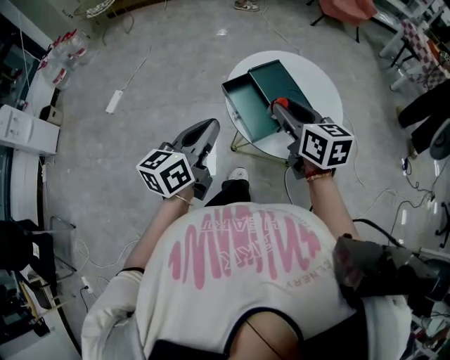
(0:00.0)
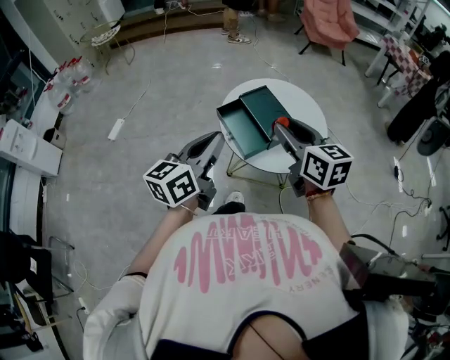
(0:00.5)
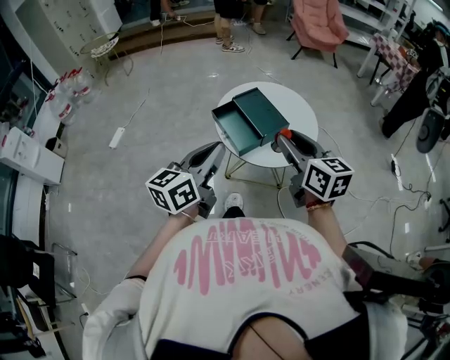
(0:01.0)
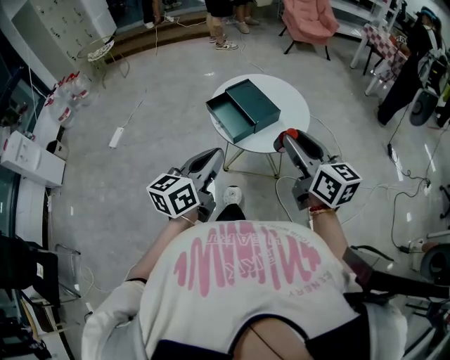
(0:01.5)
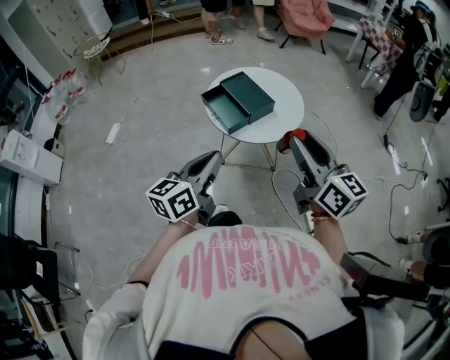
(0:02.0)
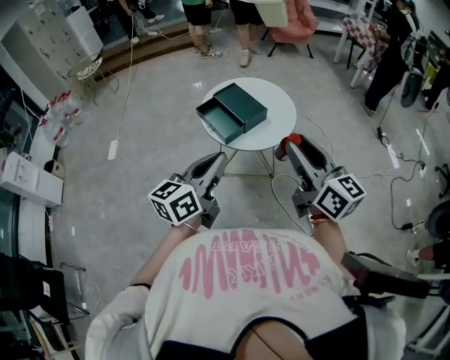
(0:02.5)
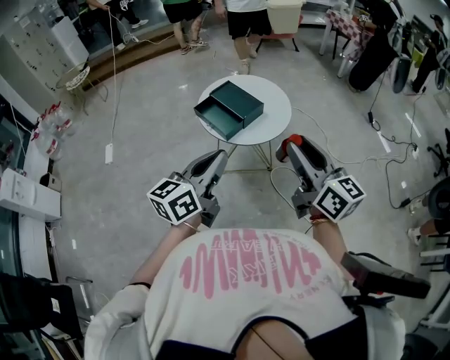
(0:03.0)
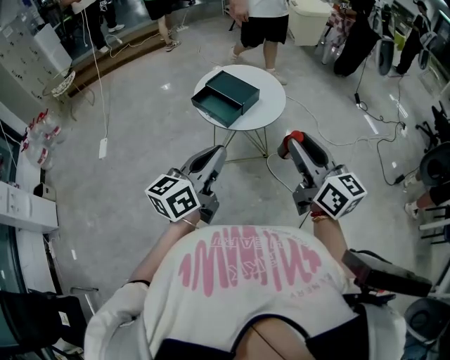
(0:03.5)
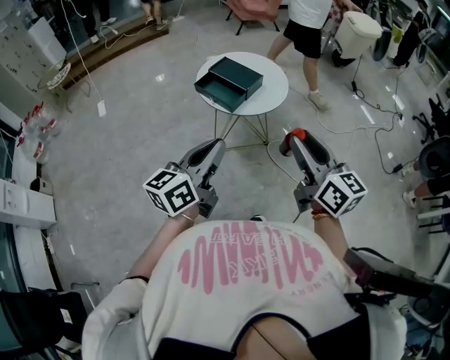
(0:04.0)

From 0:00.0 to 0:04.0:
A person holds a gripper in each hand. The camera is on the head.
From 0:00.0 to 0:02.0: The left gripper shifts approximately 20 cm backward and to the right. Meanwhile the right gripper goes roughly 35 cm backward, upward and to the right, and swivels roughly 30 degrees.
From 0:02.0 to 0:04.0: The left gripper heads backward, to the left and upward, covering roughly 15 cm; the right gripper travels backward and to the left by roughly 20 cm.

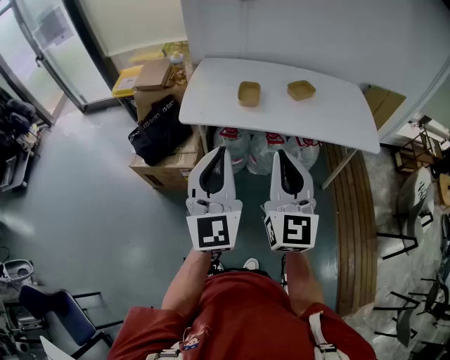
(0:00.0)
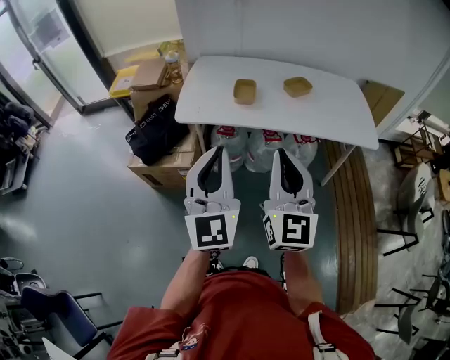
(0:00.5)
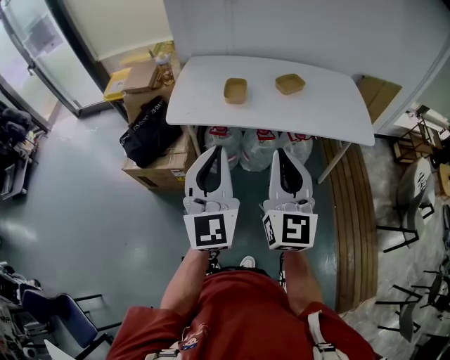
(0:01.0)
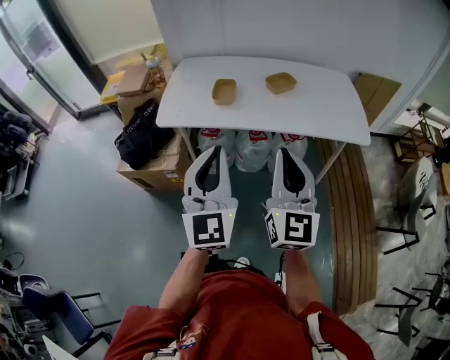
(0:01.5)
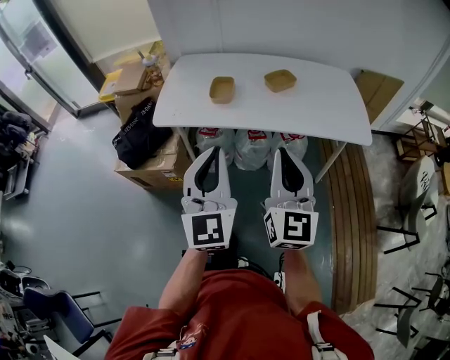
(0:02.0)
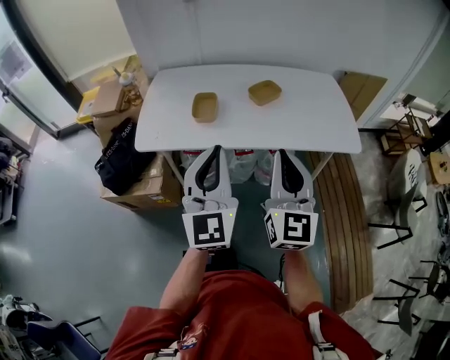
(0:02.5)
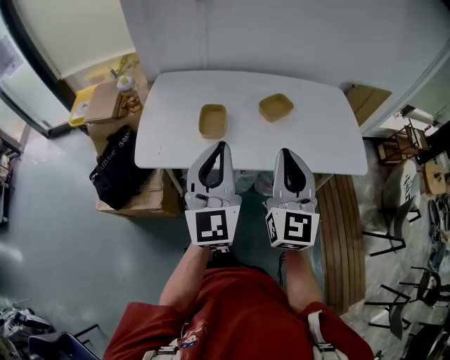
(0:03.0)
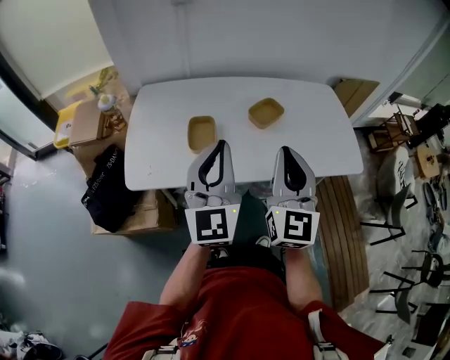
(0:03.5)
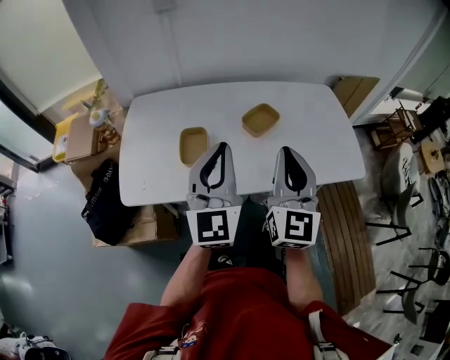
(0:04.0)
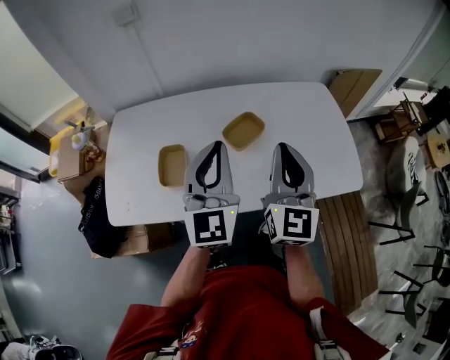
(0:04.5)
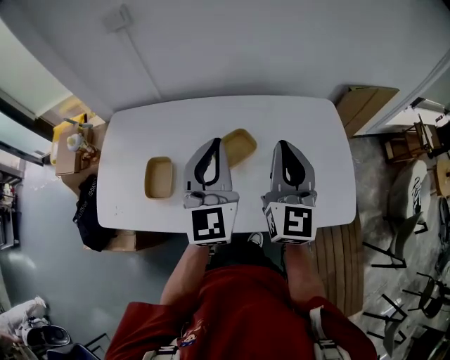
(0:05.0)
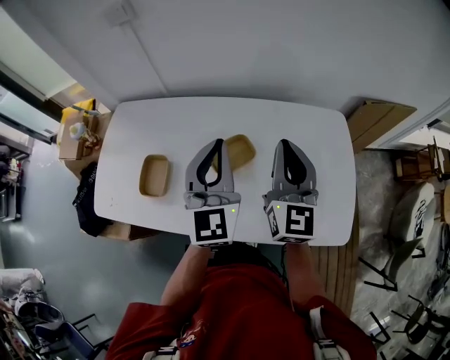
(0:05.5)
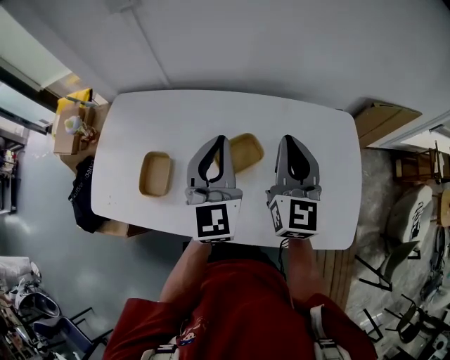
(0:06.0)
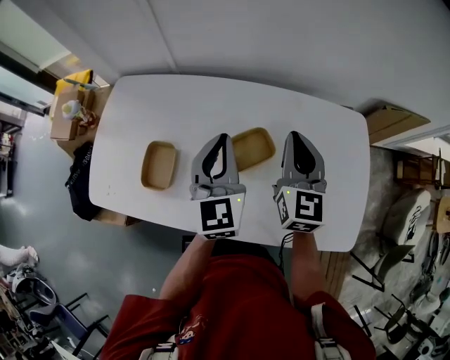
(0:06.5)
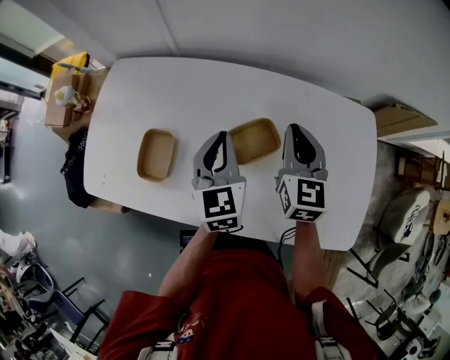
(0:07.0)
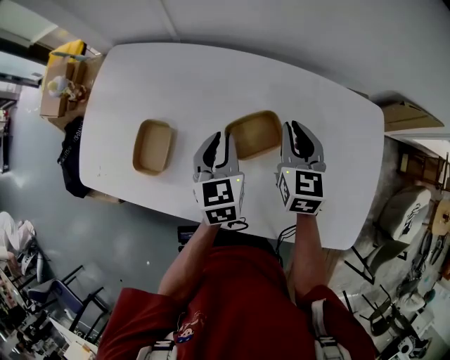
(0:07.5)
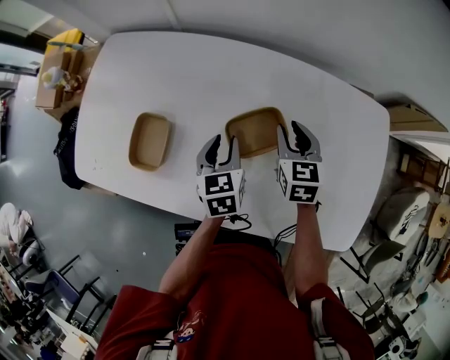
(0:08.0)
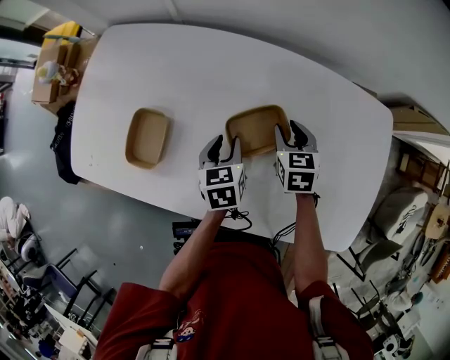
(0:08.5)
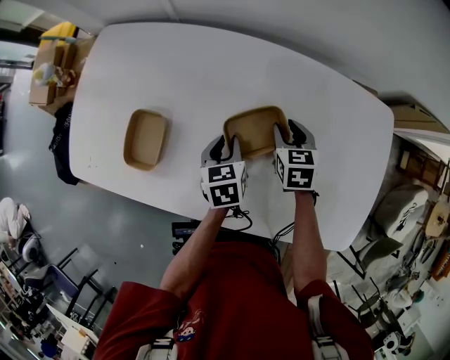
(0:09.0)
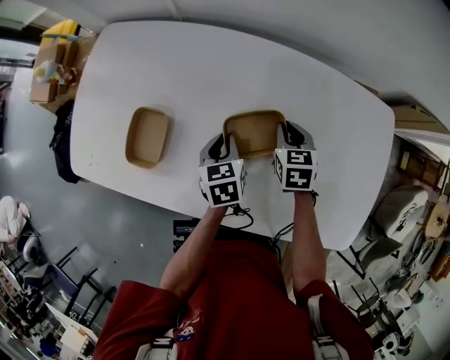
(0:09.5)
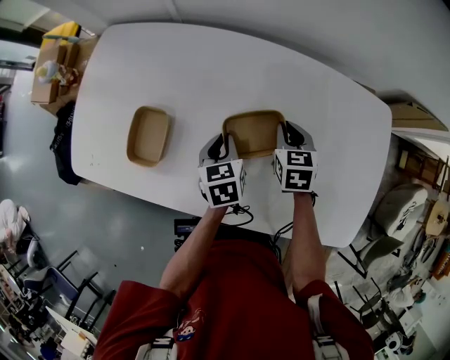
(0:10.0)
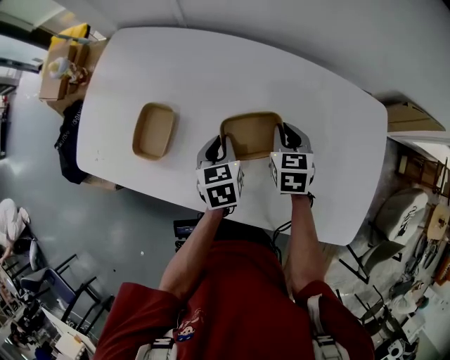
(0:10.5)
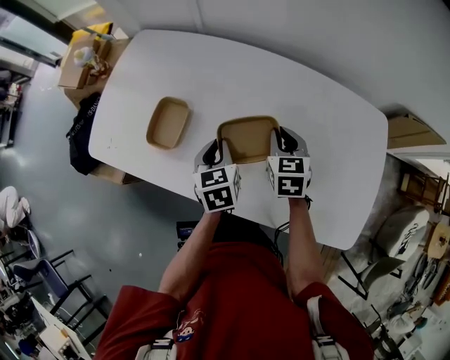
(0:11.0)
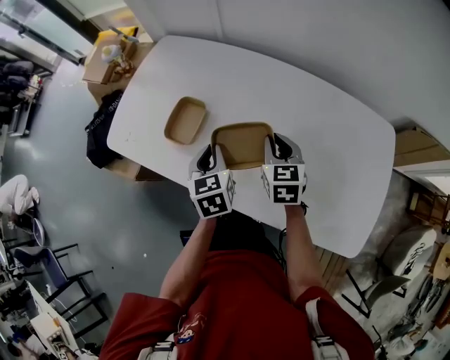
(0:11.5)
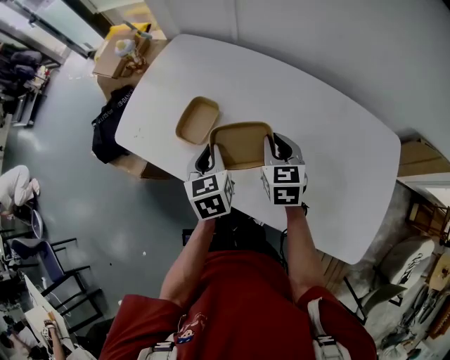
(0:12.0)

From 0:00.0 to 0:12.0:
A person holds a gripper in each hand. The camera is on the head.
From 0:00.0 to 0:02.0: The grippers both shift to the right by roughly 15 cm.
From 0:02.0 to 0:04.0: Both grippers travel together forward, some 30 cm.
From 0:04.0 to 0:06.0: Both grippers move forward and to the right, approximately 30 cm.
From 0:06.0 to 0:08.0: The grippers both shift downward by approximately 25 cm. The right gripper angles its fingers downward, by approximately 40 degrees, and opens its fingers. Meanwhile the left gripper angles its fingers downward, by roughly 40 degrees, and opens.
From 0:08.0 to 0:10.0: The left gripper closes up. The right gripper heads downward, covering approximately 5 cm, and closes up.
From 0:10.0 to 0:12.0: The two grippers go about 20 cm to the left, upward and backward. The left gripper changes its angle by some 20 degrees, while the right gripper rotates roughly 20 degrees.

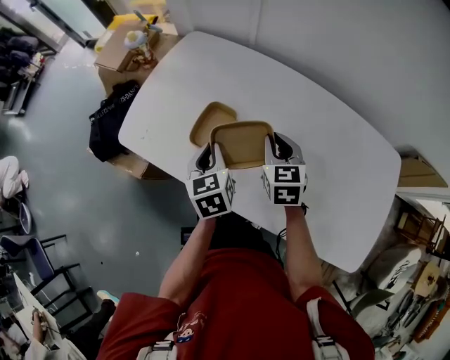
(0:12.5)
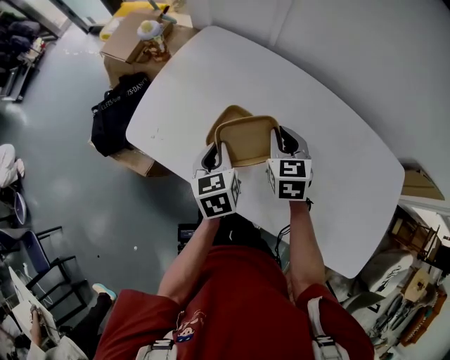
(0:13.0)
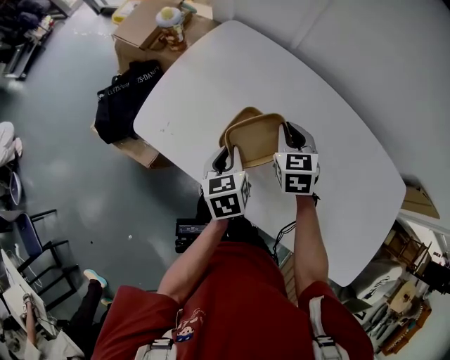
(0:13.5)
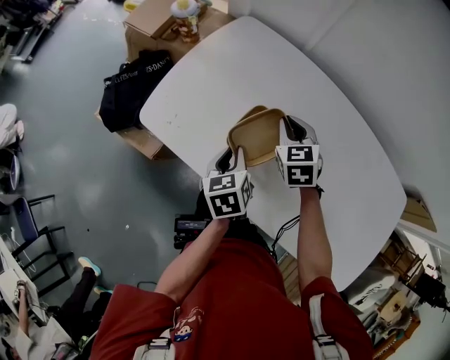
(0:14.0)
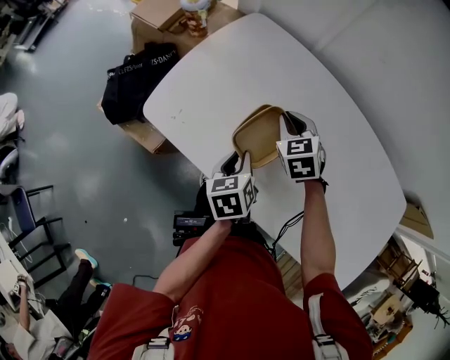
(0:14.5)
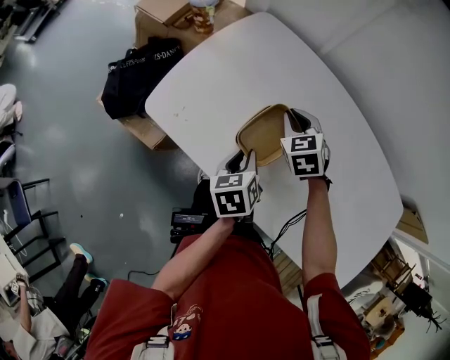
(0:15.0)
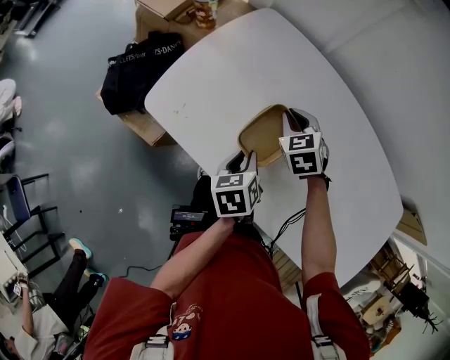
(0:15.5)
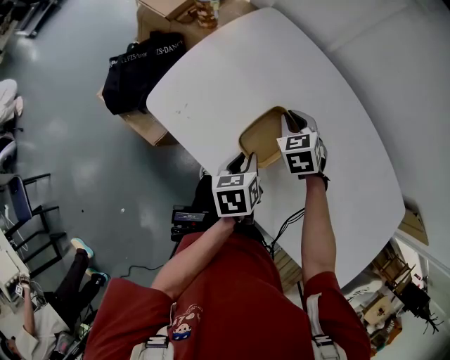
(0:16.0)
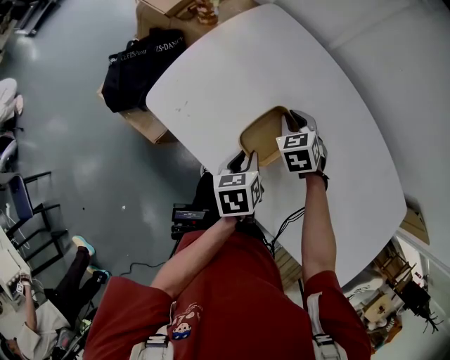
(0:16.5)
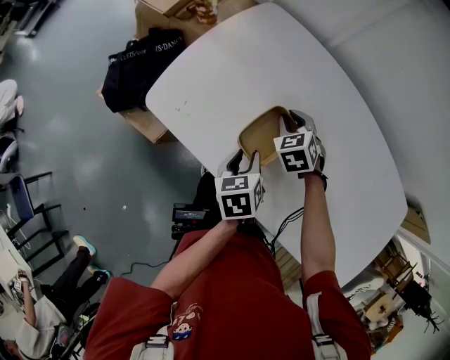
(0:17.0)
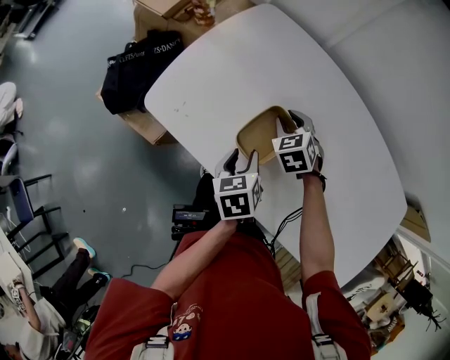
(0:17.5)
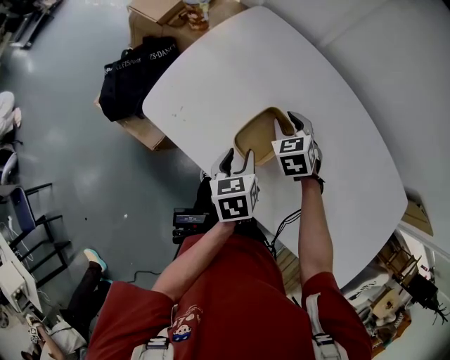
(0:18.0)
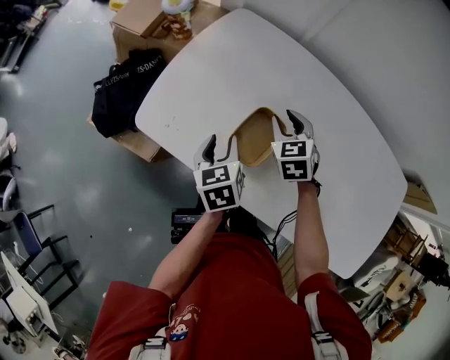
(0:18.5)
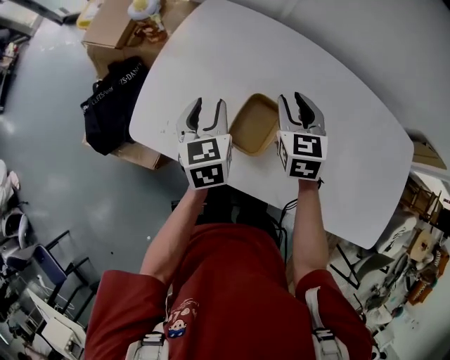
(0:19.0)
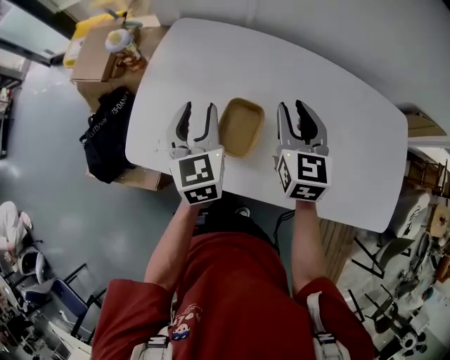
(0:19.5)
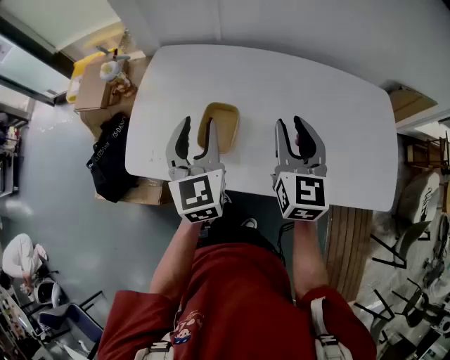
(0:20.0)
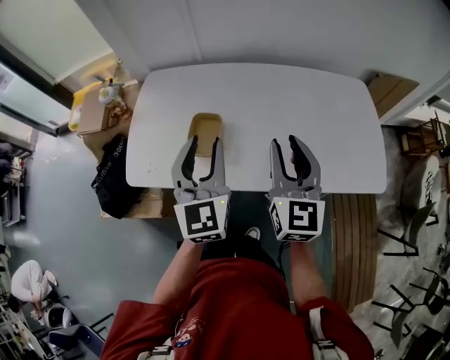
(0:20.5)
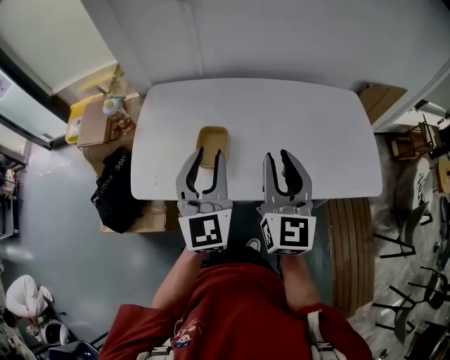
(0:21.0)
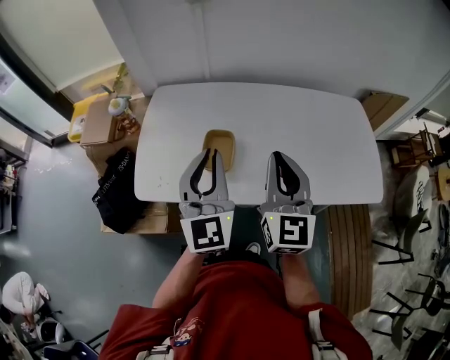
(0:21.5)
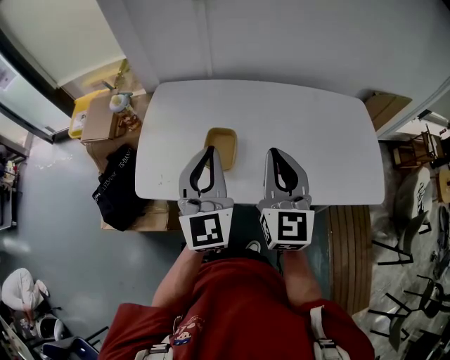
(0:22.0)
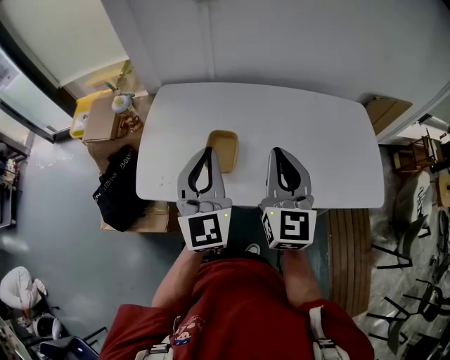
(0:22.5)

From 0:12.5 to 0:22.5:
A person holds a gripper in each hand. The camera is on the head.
From 0:12.5 to 0:14.5: The left gripper travels downward and to the left by some 10 cm, and changes its angle by approximately 20 degrees, while the right gripper moves forward and to the left, some 15 cm, and turns by roughly 30 degrees.
From 0:14.5 to 0:16.5: The right gripper is displaced downward by some 5 cm.
From 0:16.5 to 0:18.5: The left gripper is displaced to the left by roughly 5 cm.
From 0:18.5 to 0:20.5: The right gripper changes place by some 40 cm, and points its fingers roughly 40 degrees further upward; the left gripper heads upward, covering approximately 25 cm, and points its fingers approximately 40 degrees further upward.
From 0:20.5 to 0:22.5: The grippers both shift to the left by approximately 10 cm. The left gripper closes its fingers, while the right gripper closes its fingers.
